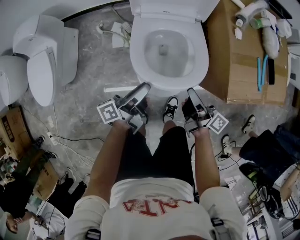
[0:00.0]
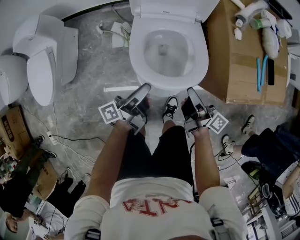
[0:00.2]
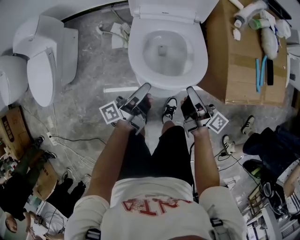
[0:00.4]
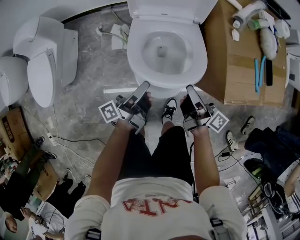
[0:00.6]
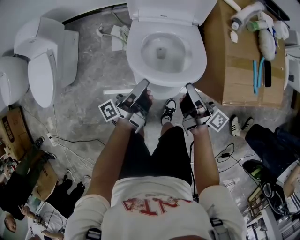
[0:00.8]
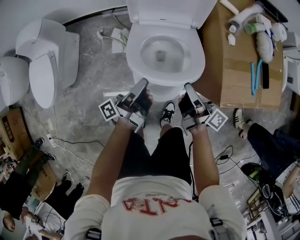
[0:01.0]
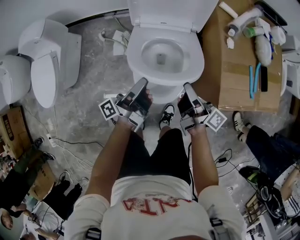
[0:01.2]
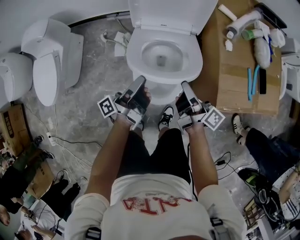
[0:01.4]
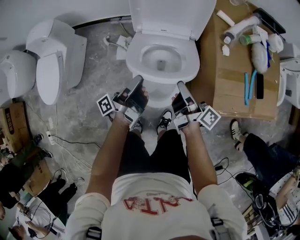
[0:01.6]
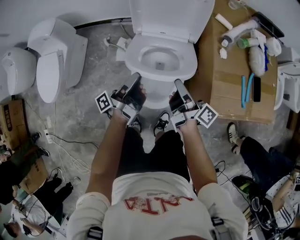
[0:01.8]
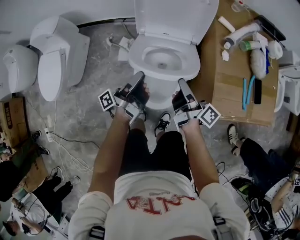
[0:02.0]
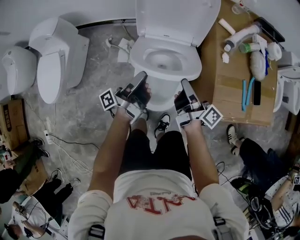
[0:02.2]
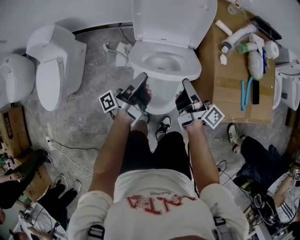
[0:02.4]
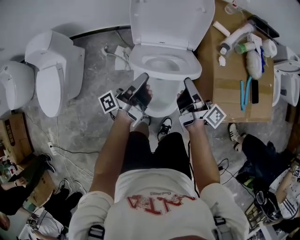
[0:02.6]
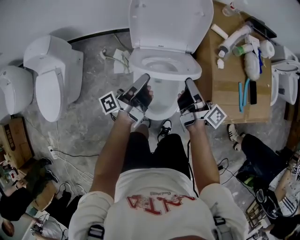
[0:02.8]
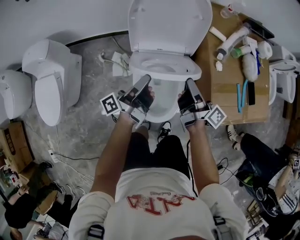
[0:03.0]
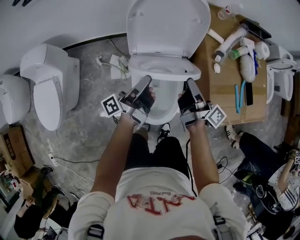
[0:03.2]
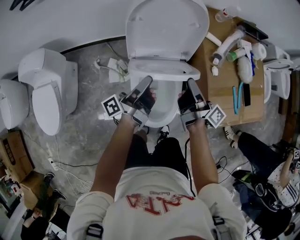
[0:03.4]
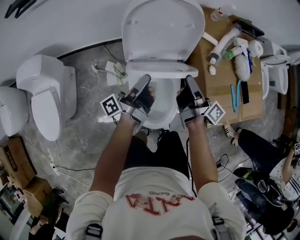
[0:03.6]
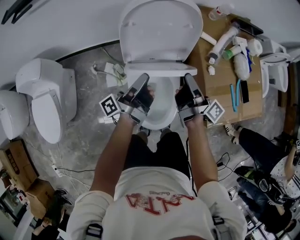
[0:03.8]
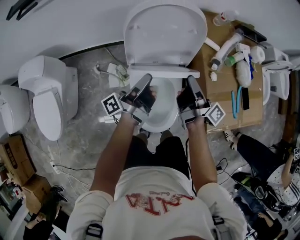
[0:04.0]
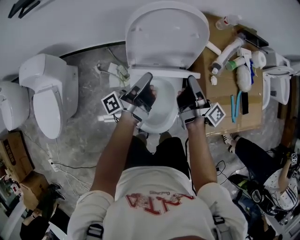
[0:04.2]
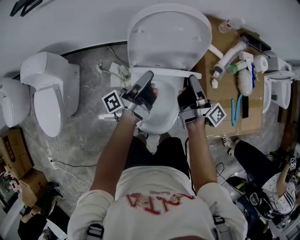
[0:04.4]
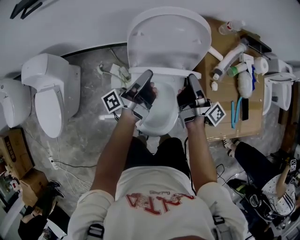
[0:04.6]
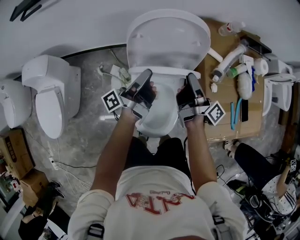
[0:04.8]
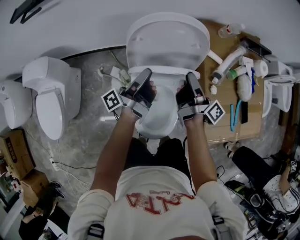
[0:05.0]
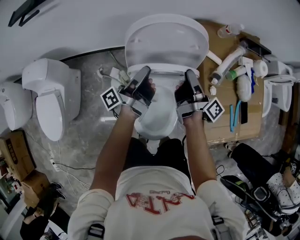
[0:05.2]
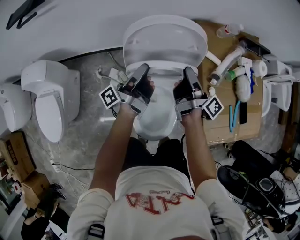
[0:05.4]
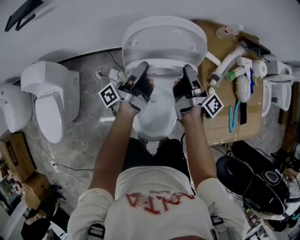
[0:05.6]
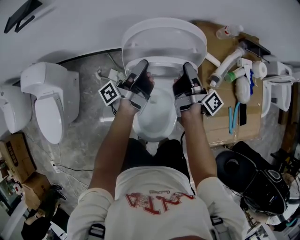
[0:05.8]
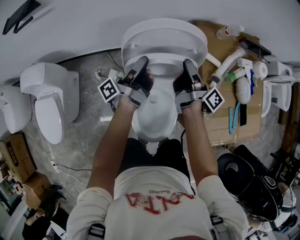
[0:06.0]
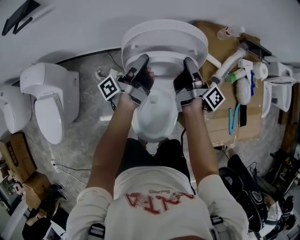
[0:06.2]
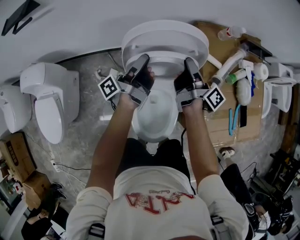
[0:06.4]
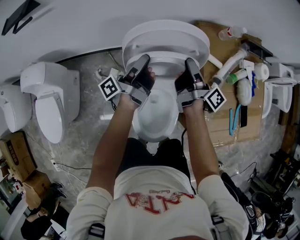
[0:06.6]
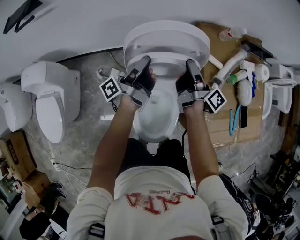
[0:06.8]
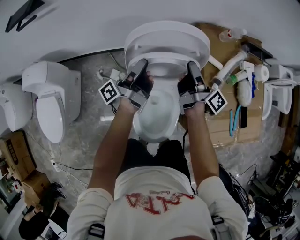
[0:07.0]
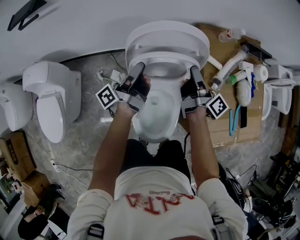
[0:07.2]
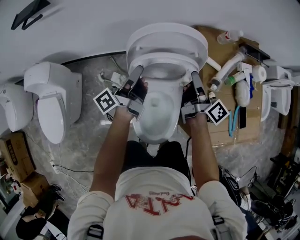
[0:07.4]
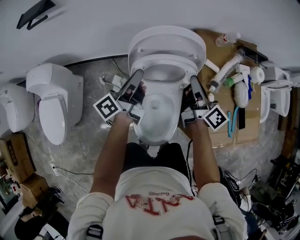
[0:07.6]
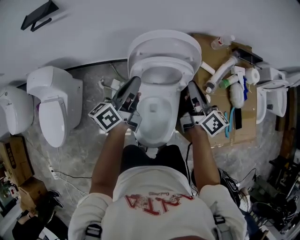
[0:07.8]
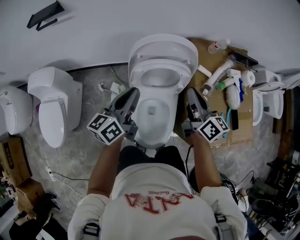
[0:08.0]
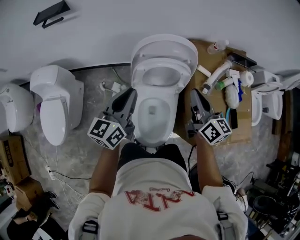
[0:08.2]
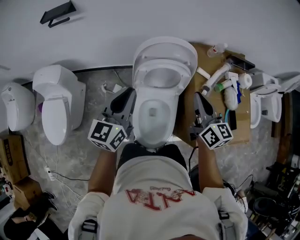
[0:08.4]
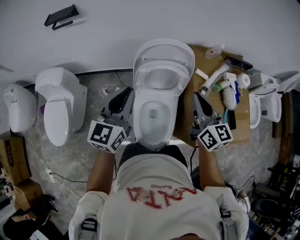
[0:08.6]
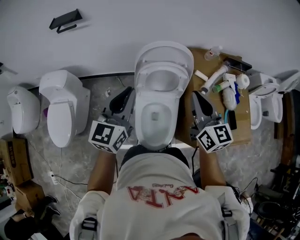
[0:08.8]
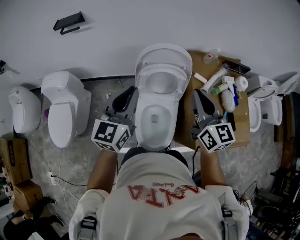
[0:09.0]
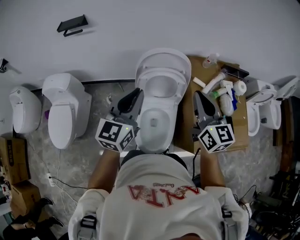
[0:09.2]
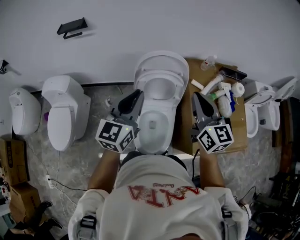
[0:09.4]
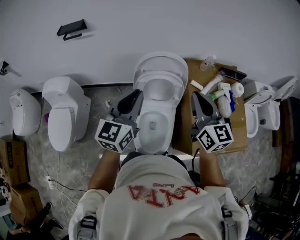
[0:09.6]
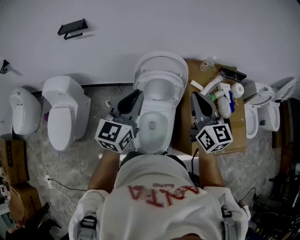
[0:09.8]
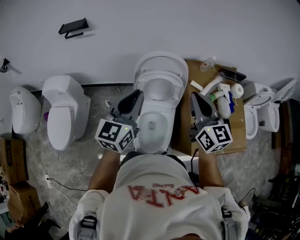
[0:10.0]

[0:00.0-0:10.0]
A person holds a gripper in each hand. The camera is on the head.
0:00.0 to 0:01.4: The two grippers go about 10 cm forward and upward. The left gripper turns by approximately 20 degrees, and closes its fingers.
0:01.4 to 0:02.8: The grippers both shift forward and upward by some 10 cm.
0:02.8 to 0:04.2: The grippers both shift forward by roughly 10 cm.
0:04.2 to 0:05.8: Both grippers move forward, some 10 cm.
0:05.8 to 0:07.2: The grippers make only small movements.
0:07.2 to 0:08.6: The two grippers go some 25 cm upward and backward. The left gripper twists some 80 degrees clockwise, seen from behind; the right gripper rotates around the line of its fingers by about 60 degrees, counterclockwise from behind.
0:08.6 to 0:10.0: Both grippers travel together upward, roughly 5 cm.

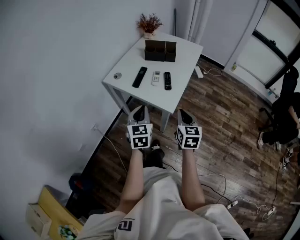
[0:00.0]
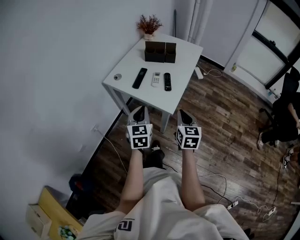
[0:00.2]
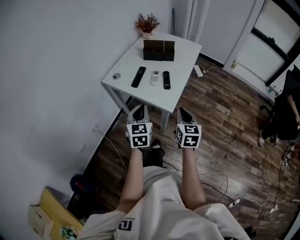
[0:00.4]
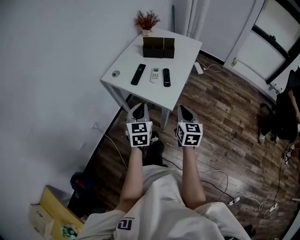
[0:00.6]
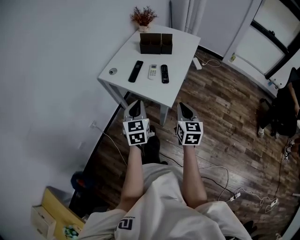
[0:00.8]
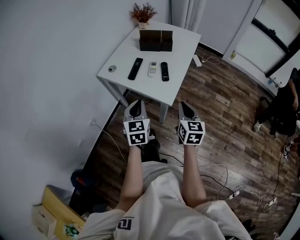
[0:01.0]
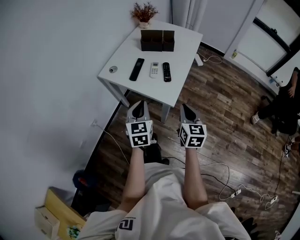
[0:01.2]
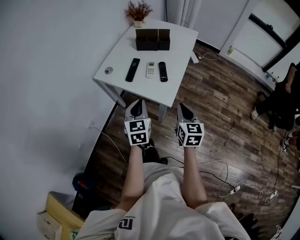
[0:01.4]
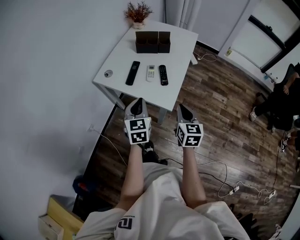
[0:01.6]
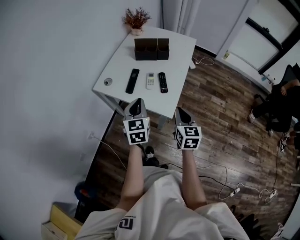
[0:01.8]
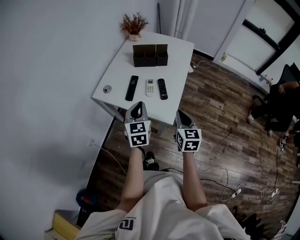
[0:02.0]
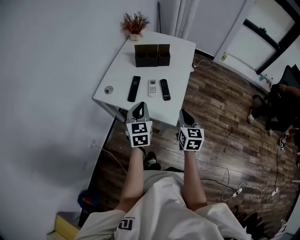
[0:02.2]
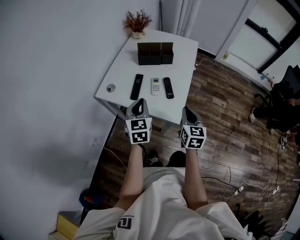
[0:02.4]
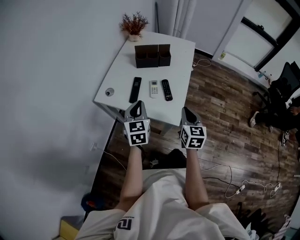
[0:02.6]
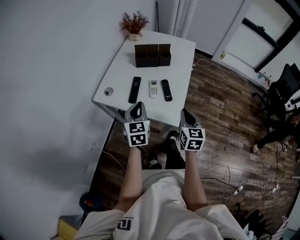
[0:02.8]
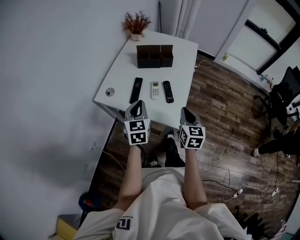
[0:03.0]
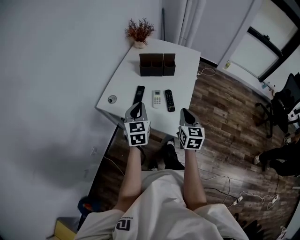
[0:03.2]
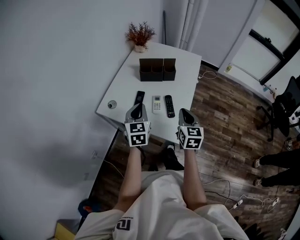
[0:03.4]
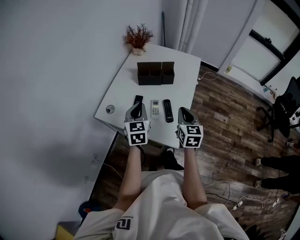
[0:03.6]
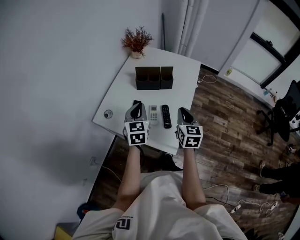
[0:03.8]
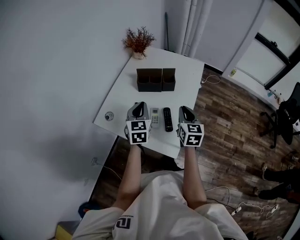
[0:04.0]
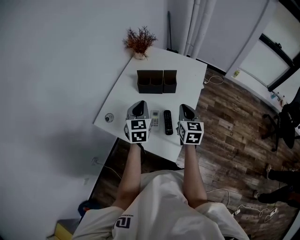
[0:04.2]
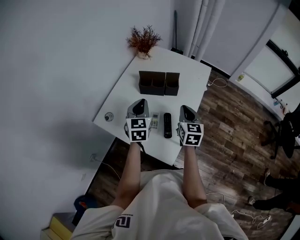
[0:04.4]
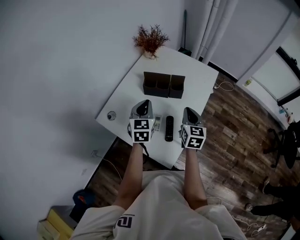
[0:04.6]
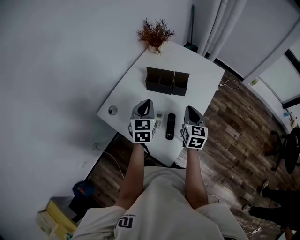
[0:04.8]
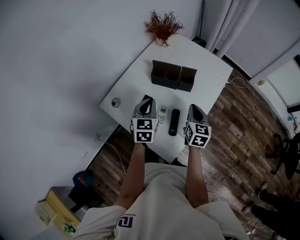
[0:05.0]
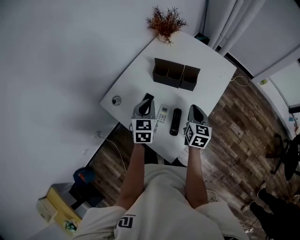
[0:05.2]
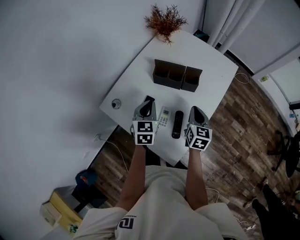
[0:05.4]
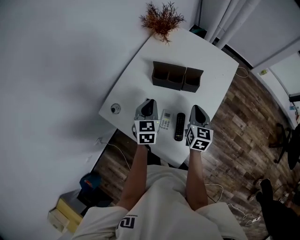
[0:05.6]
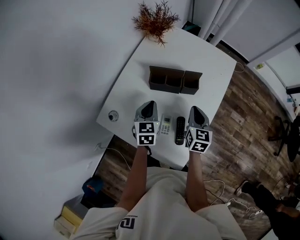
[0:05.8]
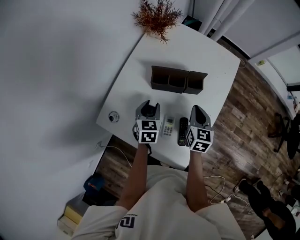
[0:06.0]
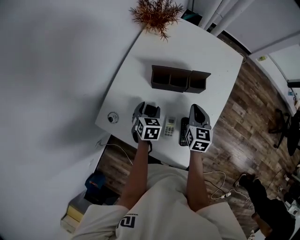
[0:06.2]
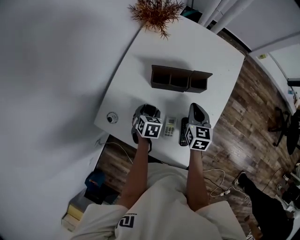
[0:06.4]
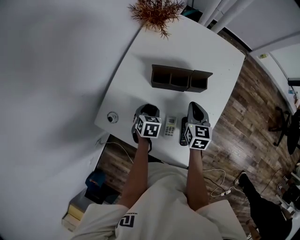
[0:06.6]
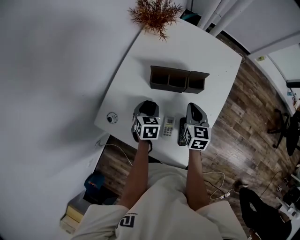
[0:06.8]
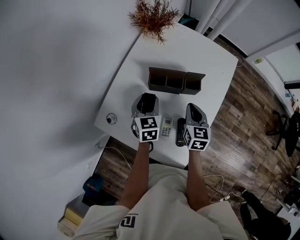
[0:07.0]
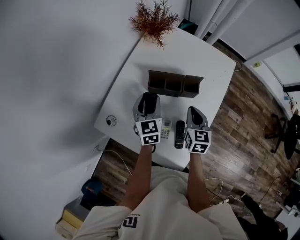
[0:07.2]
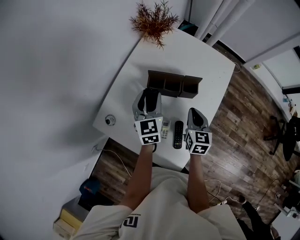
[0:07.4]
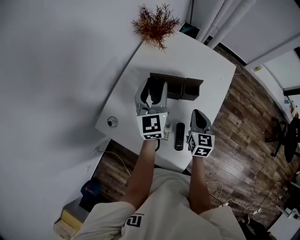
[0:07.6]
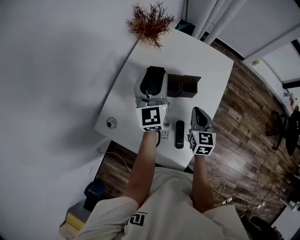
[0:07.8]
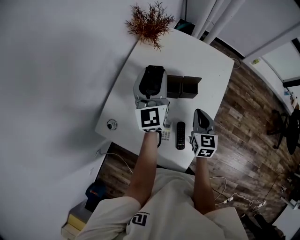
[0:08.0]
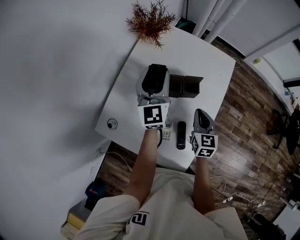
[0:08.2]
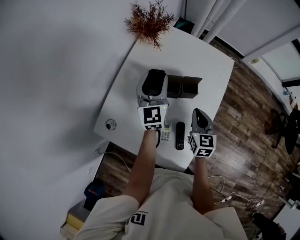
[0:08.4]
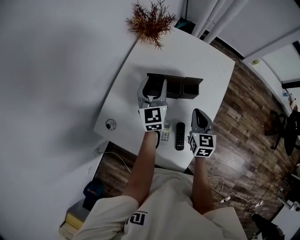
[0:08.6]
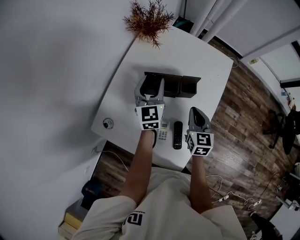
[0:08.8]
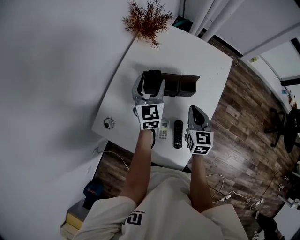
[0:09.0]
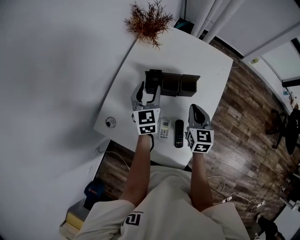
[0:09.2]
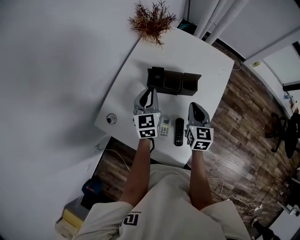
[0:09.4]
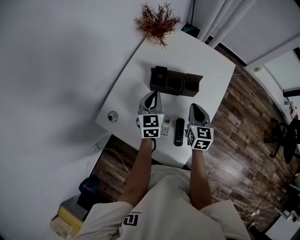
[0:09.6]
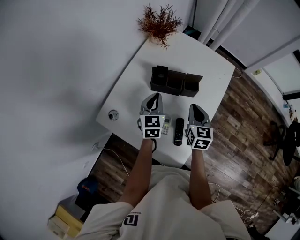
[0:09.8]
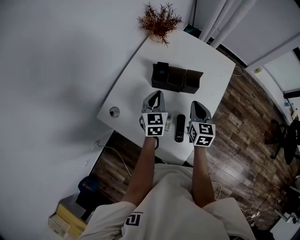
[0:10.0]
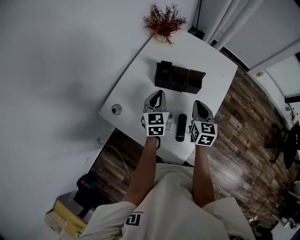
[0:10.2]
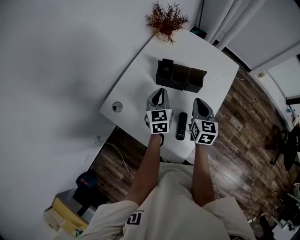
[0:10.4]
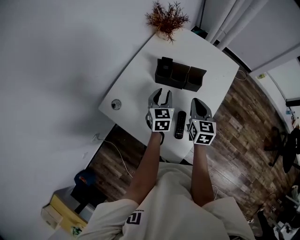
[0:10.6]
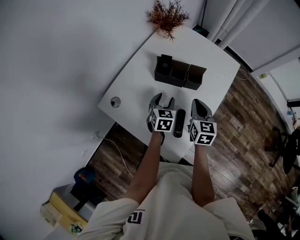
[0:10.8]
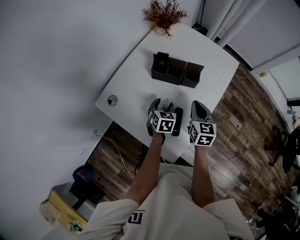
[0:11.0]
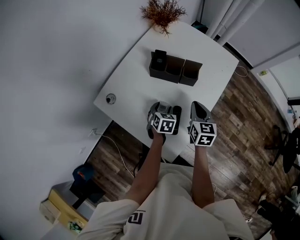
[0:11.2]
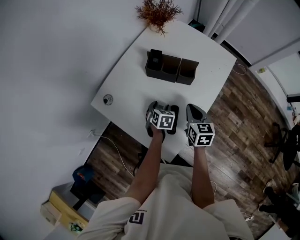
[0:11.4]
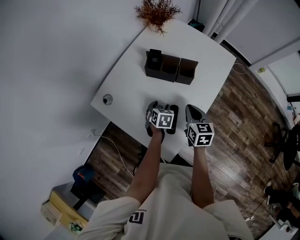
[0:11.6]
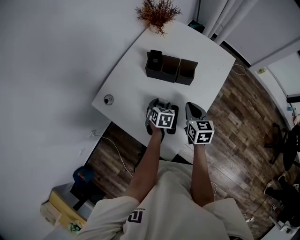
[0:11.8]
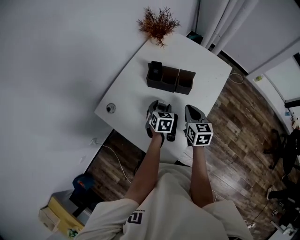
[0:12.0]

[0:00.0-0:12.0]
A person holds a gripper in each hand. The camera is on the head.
0:00.0 to 0:01.6: The left gripper heads forward, covering some 5 cm.
0:01.6 to 0:03.0: The two grippers go approximately 10 cm forward.
0:03.0 to 0:04.4: The grippers both shift forward by approximately 20 cm.
0:04.4 to 0:06.0: The grippers both shift downward and forward by about 15 cm. The left gripper changes its angle by roughly 20 degrees, and opens up.
0:06.0 to 0:07.6: The left gripper shifts about 20 cm upward and forward, and tilts its fingers some 30 degrees upward.
0:07.6 to 0:09.0: The left gripper is displaced downward by roughly 5 cm.
0:09.0 to 0:10.4: The left gripper moves backward, about 10 cm, and closes up.
0:10.4 to 0:12.0: The left gripper travels downward and to the right by about 10 cm, changes its angle by approximately 20 degrees, and opens its fingers.

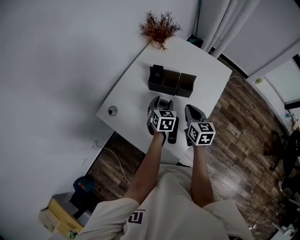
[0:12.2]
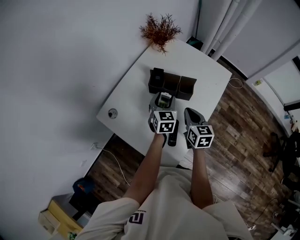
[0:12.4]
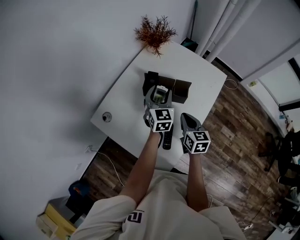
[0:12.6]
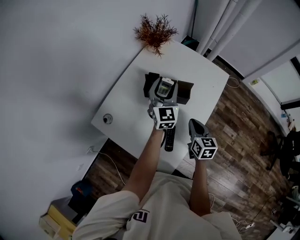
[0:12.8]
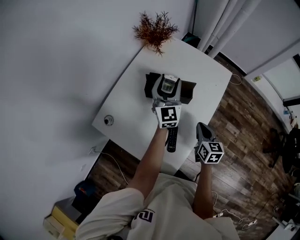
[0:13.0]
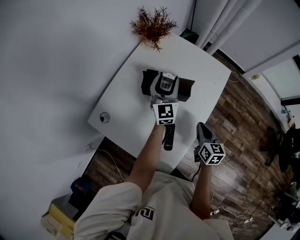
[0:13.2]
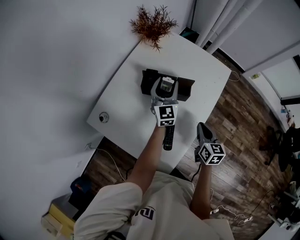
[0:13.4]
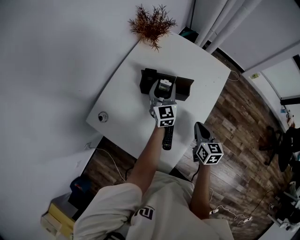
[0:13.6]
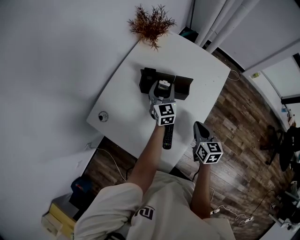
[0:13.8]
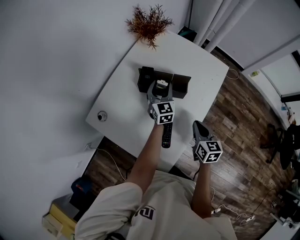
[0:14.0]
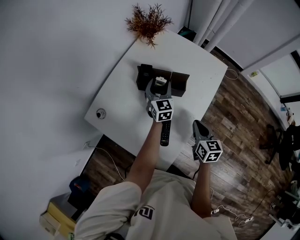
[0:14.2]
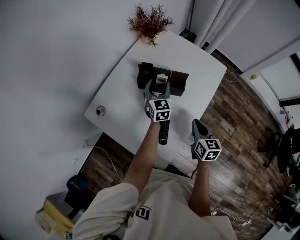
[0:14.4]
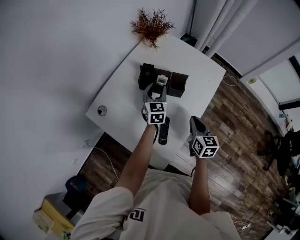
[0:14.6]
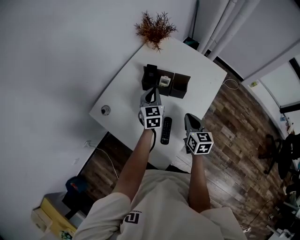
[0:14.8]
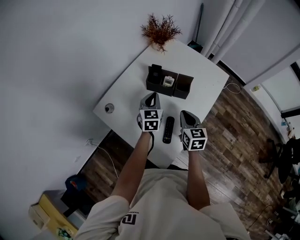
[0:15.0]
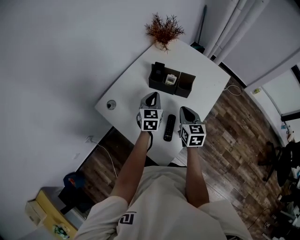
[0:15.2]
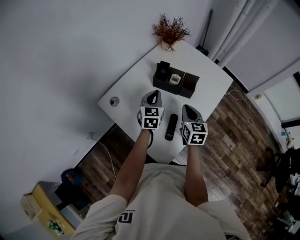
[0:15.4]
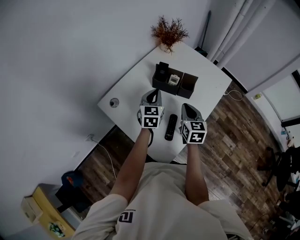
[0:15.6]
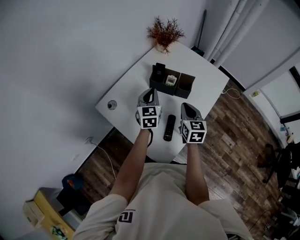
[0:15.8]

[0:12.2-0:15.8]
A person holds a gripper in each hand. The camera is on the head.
0:12.2 to 0:14.0: The right gripper travels to the right by about 5 cm, while the left gripper is displaced forward by approximately 10 cm, moves roughly 15 cm upward and comes back, and turns by approximately 20 degrees.
0:14.0 to 0:15.8: The right gripper moves to the left and upward, approximately 10 cm. Meanwhile the left gripper heads to the left, backward and upward, covering roughly 15 cm, and closes.
